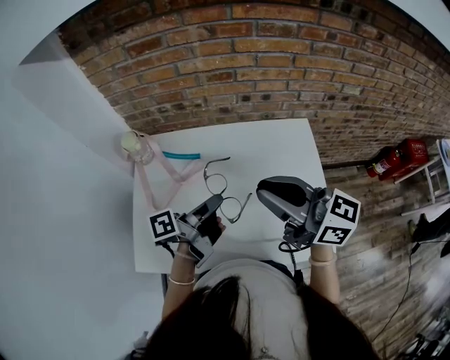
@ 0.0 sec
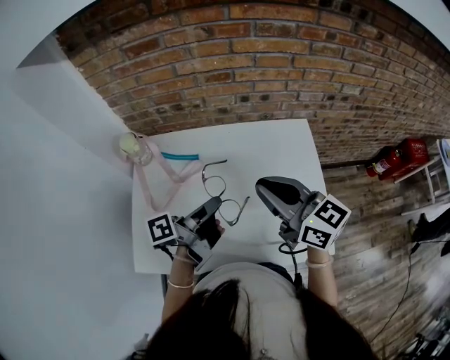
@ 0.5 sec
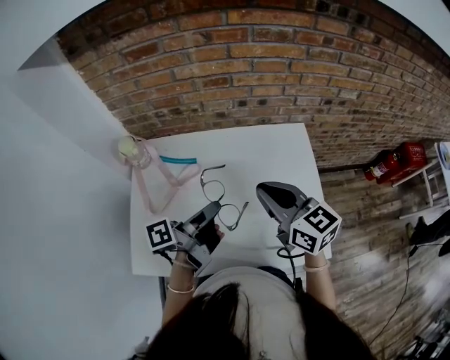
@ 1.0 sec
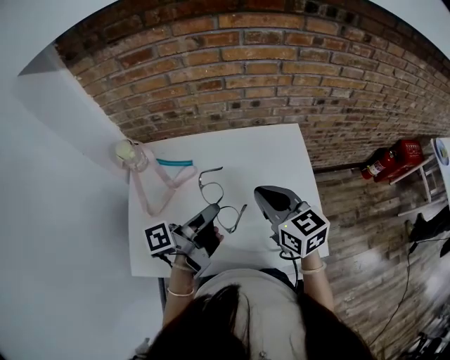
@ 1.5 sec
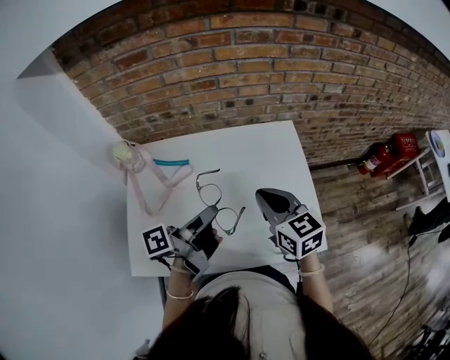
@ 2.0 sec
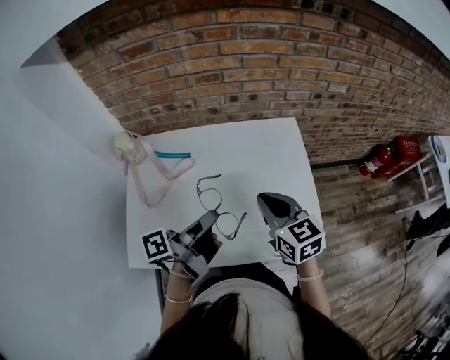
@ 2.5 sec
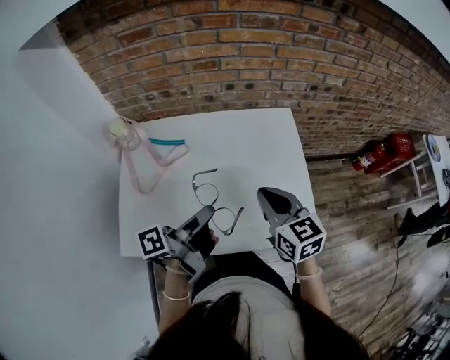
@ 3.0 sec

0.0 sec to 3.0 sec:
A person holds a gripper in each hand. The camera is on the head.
0.0 sec to 1.5 sec: The right gripper is displaced downward by some 10 cm, and swivels some 40 degrees.
1.5 sec to 3.0 sec: The right gripper changes place by roughly 5 cm.

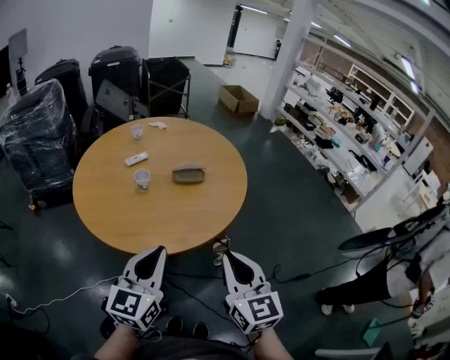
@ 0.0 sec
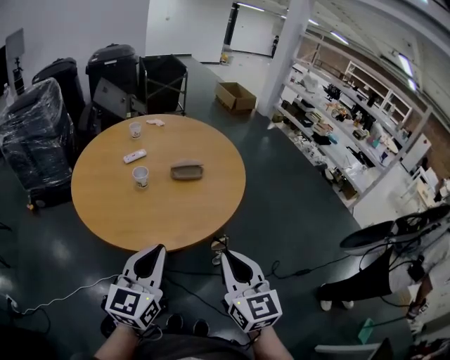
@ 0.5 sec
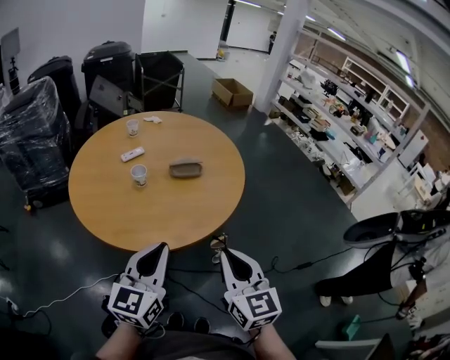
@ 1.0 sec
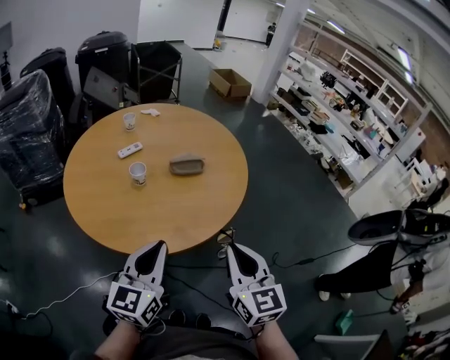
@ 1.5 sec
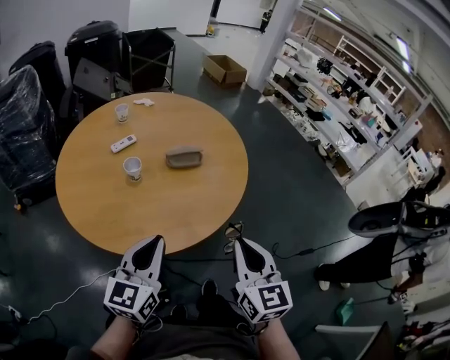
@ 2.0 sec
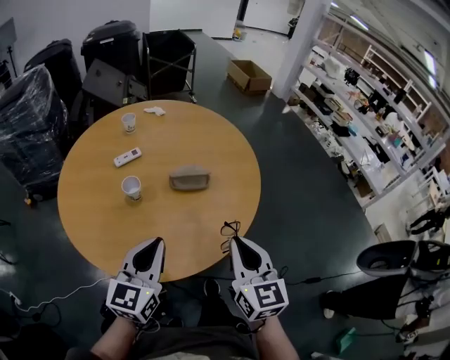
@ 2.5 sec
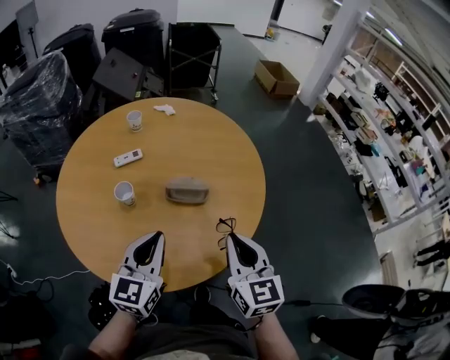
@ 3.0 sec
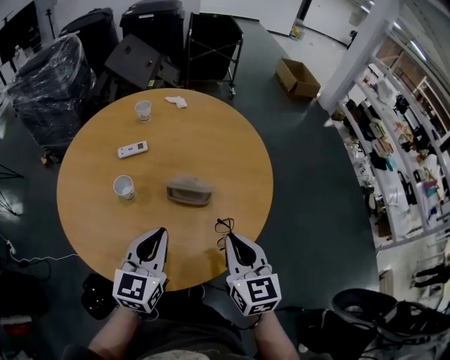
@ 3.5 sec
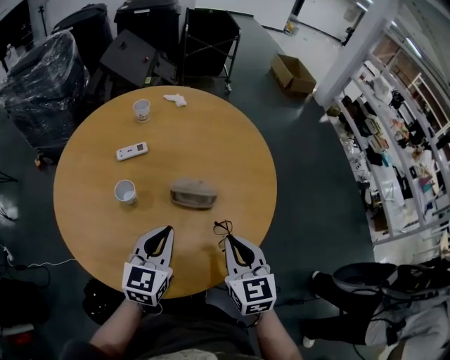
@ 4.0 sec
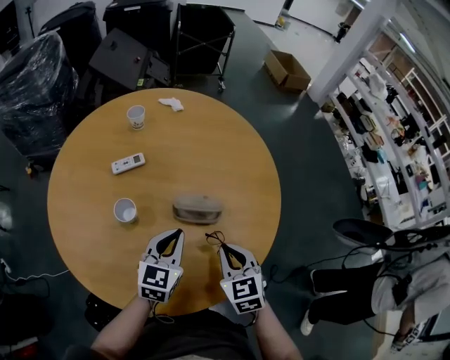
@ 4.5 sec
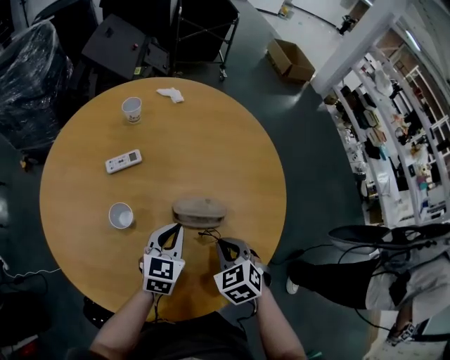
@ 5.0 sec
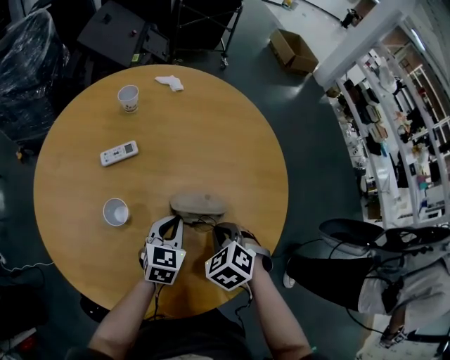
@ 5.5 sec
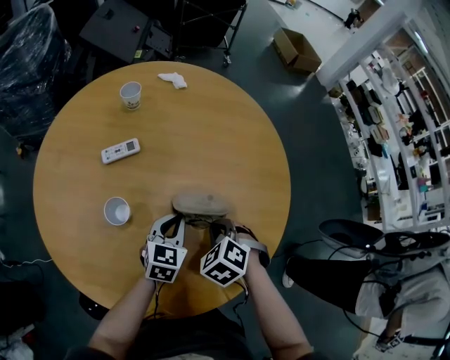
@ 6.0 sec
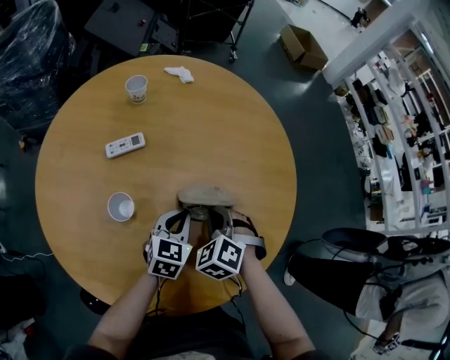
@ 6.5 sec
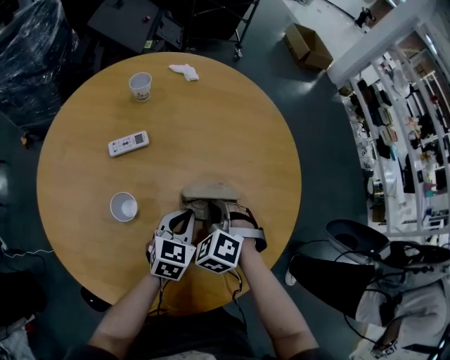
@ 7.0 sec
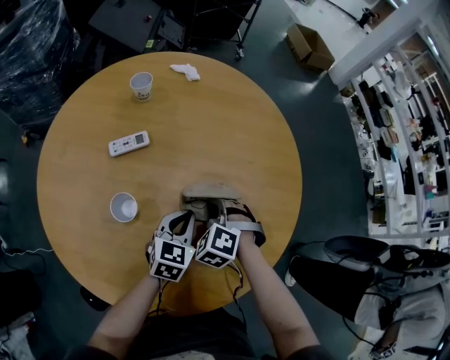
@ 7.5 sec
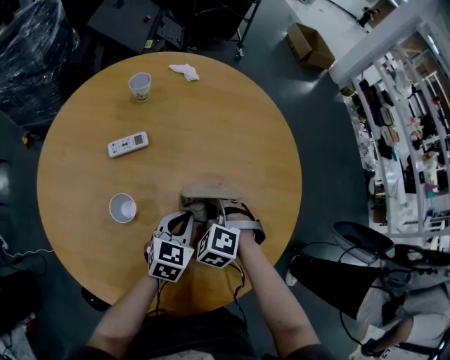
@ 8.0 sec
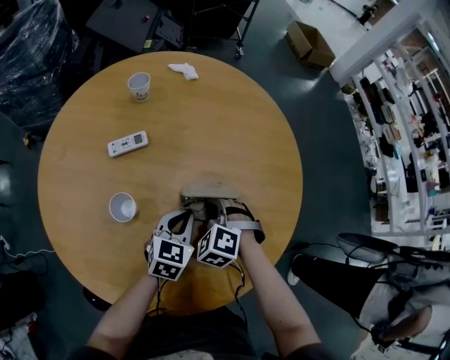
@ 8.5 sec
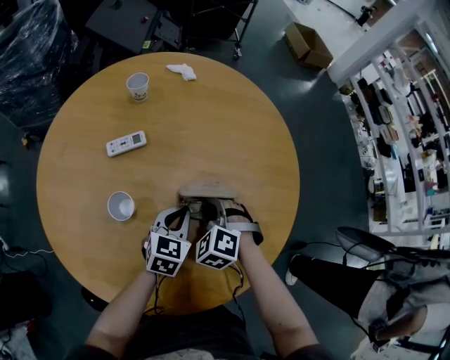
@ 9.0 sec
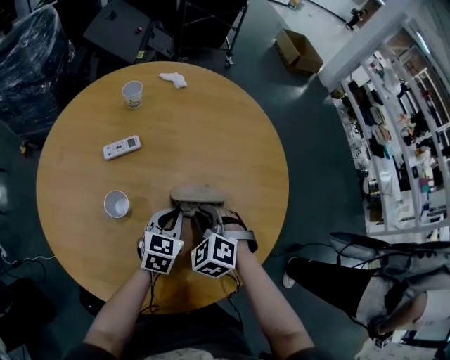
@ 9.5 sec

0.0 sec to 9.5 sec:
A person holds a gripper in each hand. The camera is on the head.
0.0 sec to 2.0 sec: Both grippers travel together forward, roughly 5 cm.
2.0 sec to 4.0 sec: The right gripper moves forward, some 30 cm, and rotates about 30 degrees. The left gripper is displaced forward and to the right by about 30 cm, and swivels roughly 20 degrees.
4.0 sec to 5.5 sec: Both grippers move downward and forward, approximately 20 cm. The right gripper points its fingers some 40 degrees further downward.
5.5 sec to 7.5 sec: The right gripper travels to the left and forward by about 10 cm, and rotates approximately 20 degrees.
7.5 sec to 9.5 sec: The right gripper changes place by roughly 5 cm.

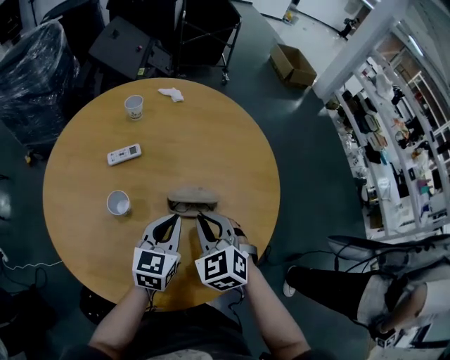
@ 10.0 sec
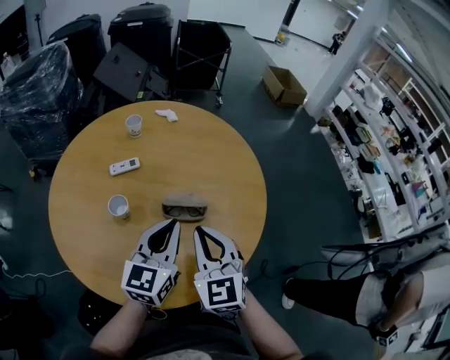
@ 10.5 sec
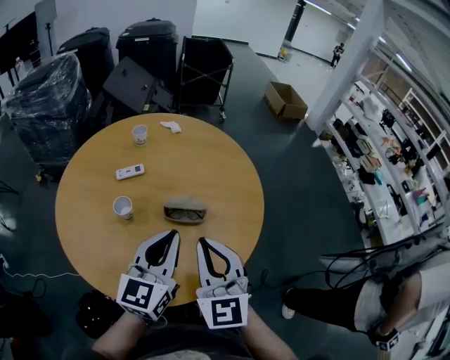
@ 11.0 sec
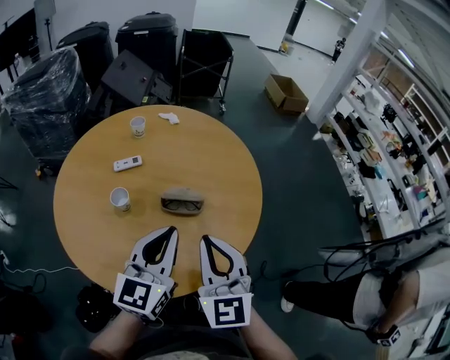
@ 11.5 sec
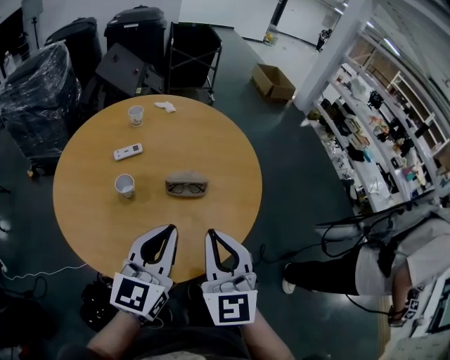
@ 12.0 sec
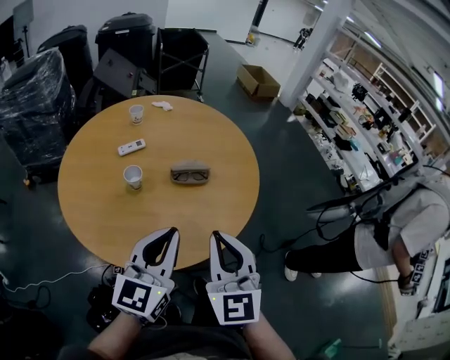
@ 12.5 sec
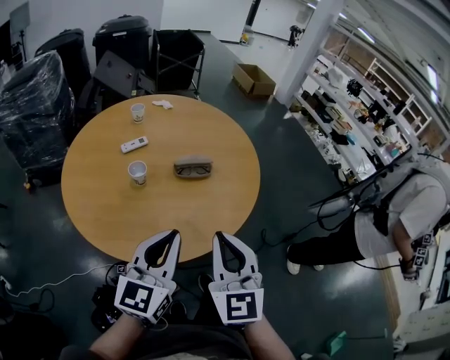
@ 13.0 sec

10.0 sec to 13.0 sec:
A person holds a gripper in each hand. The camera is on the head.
10.0 sec to 11.5 sec: Both grippers travel together upward and backward, roughly 20 cm. The right gripper rotates some 30 degrees. The left gripper swivels approximately 20 degrees.
11.5 sec to 13.0 sec: The right gripper moves backward, approximately 20 cm; the left gripper shifts some 20 cm backward and to the left.

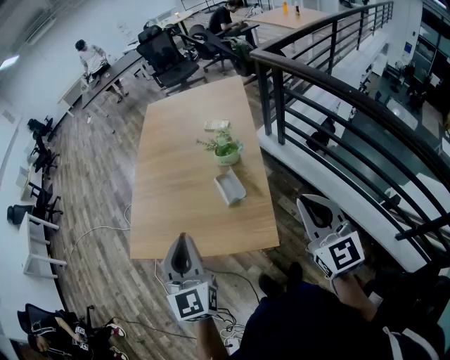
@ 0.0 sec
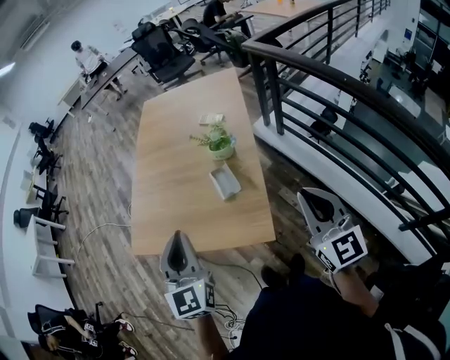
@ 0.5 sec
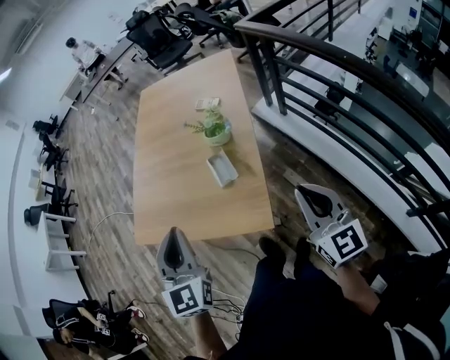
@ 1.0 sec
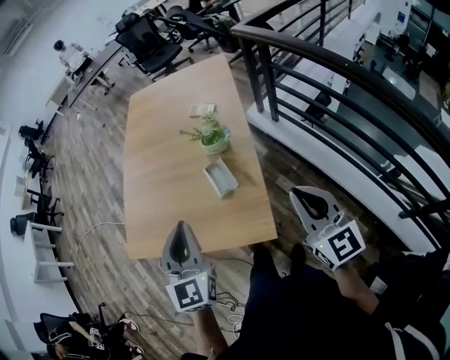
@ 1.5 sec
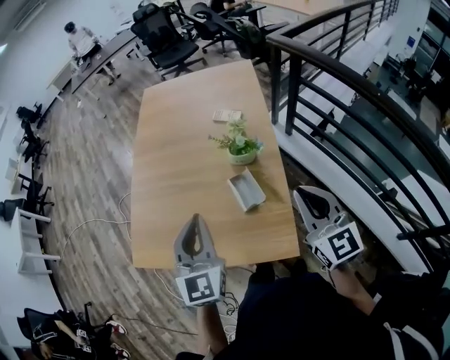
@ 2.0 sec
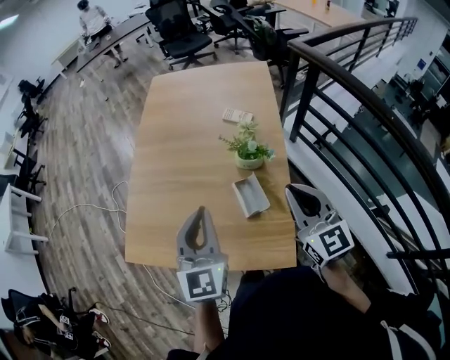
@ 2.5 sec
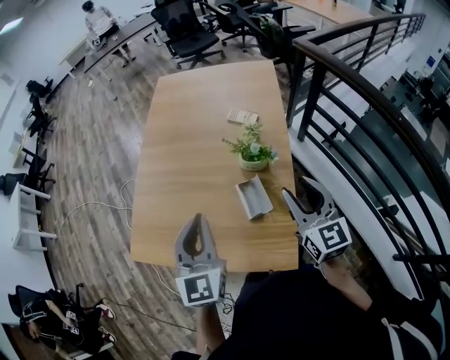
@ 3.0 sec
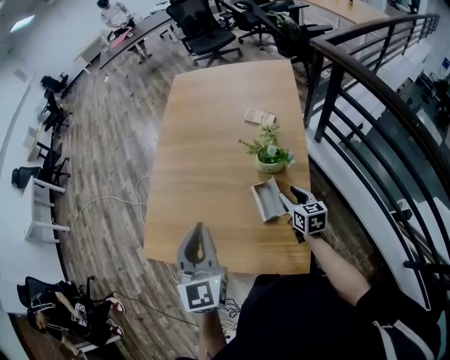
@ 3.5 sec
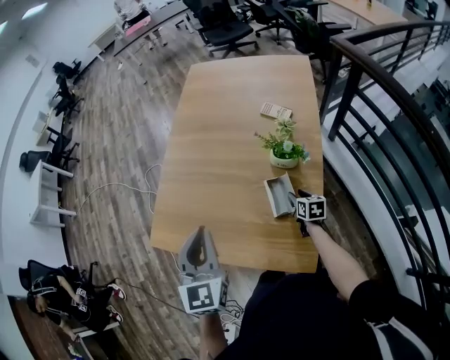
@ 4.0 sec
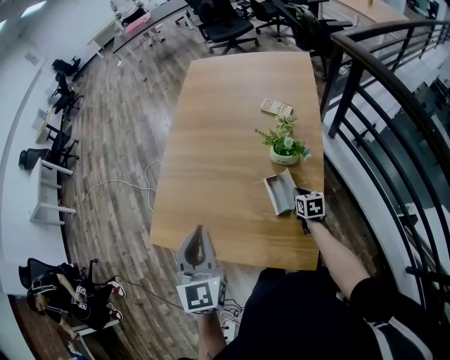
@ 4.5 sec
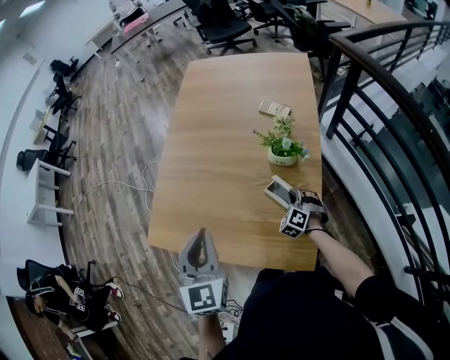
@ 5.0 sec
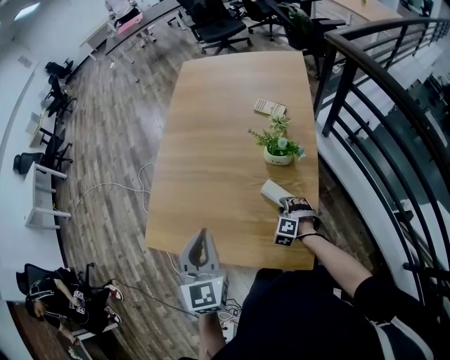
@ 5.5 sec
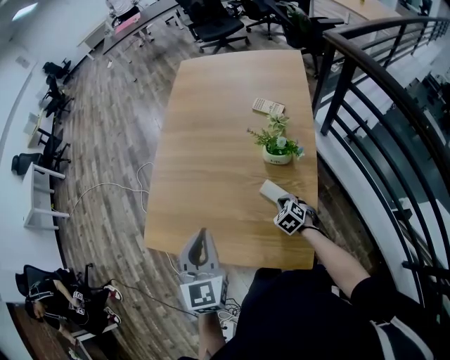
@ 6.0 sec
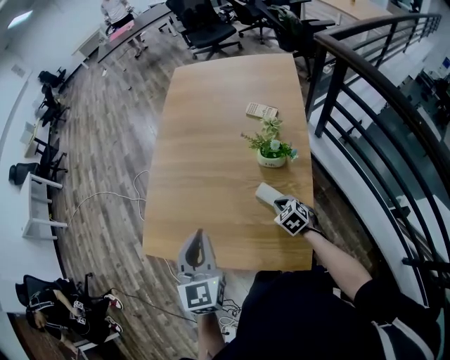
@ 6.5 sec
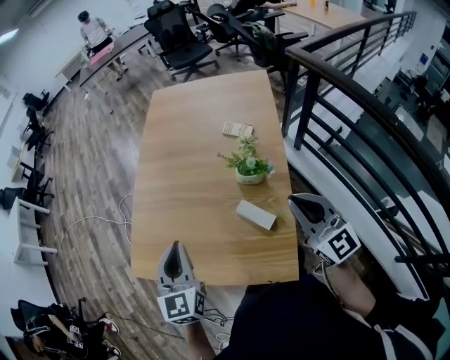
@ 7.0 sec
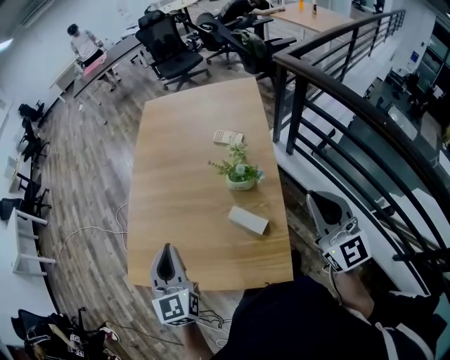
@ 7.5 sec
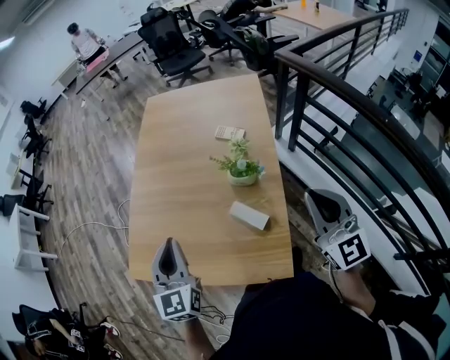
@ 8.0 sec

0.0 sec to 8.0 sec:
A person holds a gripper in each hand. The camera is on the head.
0.0 sec to 2.0 sec: The left gripper heads forward, covering some 15 cm. The right gripper heads forward and to the left, covering some 15 cm.
2.0 sec to 4.0 sec: The left gripper is displaced to the left by about 10 cm. Meanwhile the right gripper is displaced downward and forward by about 40 cm, points its fingers approximately 40 degrees further downward, and opens up.
4.0 sec to 6.0 sec: The right gripper goes roughly 5 cm to the left, rotates around the line of its fingers by about 50 degrees, counterclockwise from behind, and closes.
6.0 sec to 8.0 sec: The left gripper changes place by approximately 5 cm; the right gripper travels upward by roughly 40 cm, and tips its fingers upward by roughly 60 degrees.

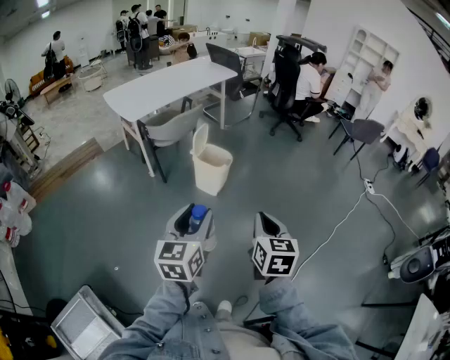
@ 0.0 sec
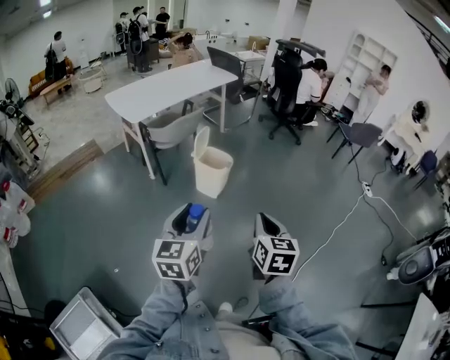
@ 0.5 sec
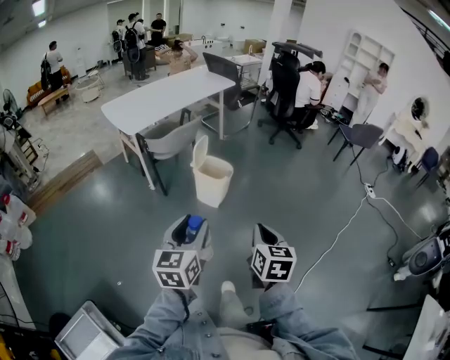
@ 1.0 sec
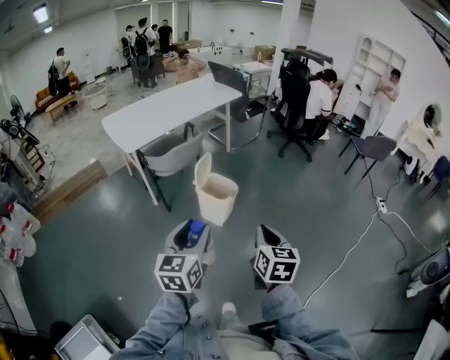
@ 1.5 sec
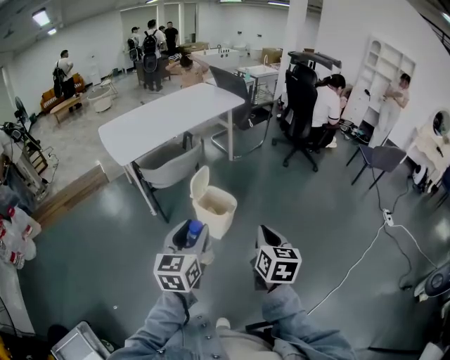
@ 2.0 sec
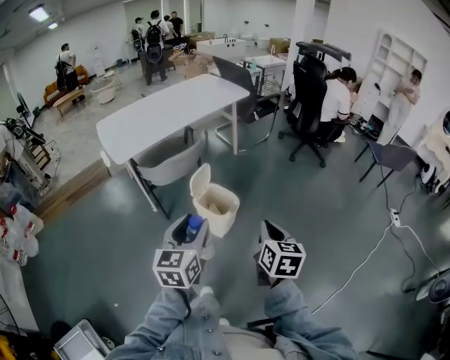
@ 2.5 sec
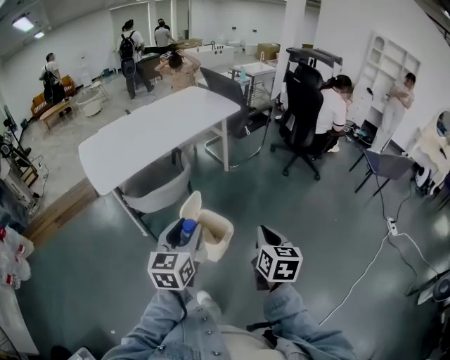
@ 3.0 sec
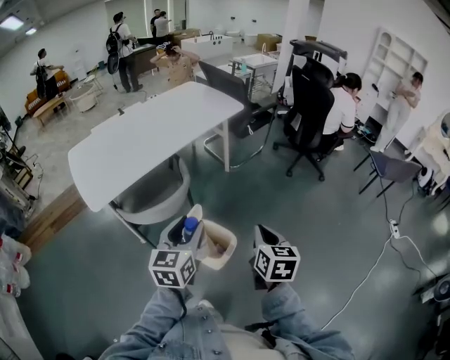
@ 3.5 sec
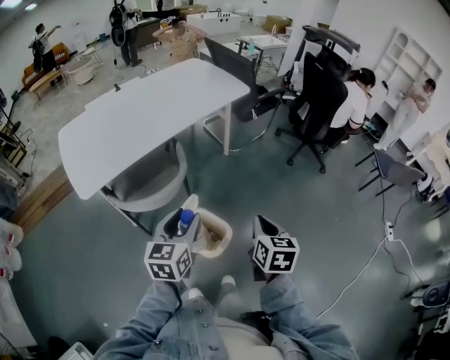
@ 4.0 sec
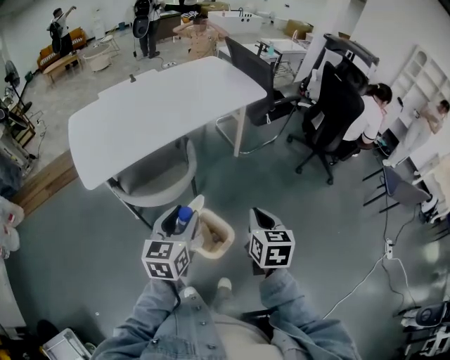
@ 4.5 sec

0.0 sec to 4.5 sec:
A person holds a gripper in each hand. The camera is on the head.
0.0 sec to 2.0 sec: Both grippers move forward, some 30 cm.
2.0 sec to 4.5 sec: The two grippers travel together, forward, approximately 50 cm.
